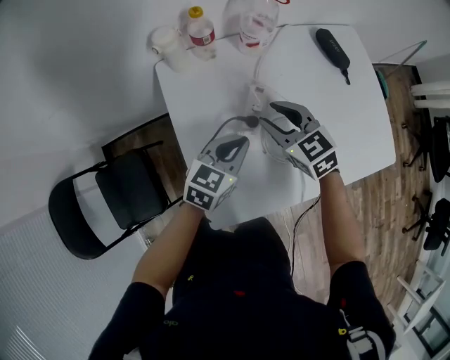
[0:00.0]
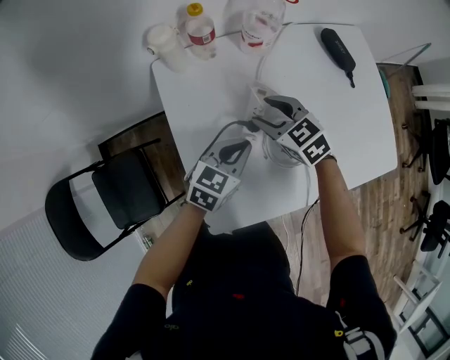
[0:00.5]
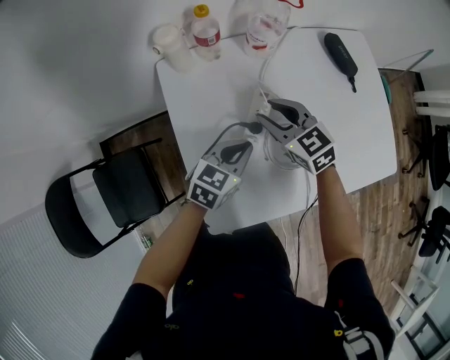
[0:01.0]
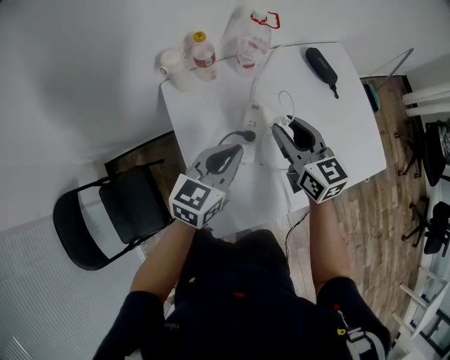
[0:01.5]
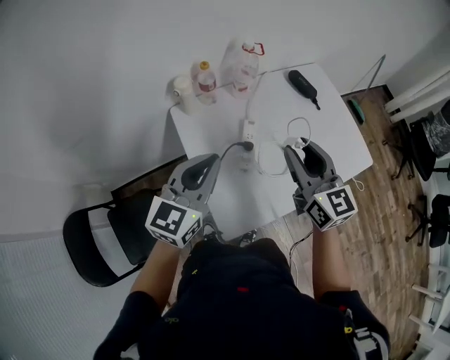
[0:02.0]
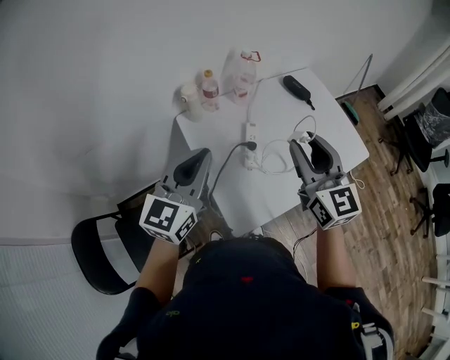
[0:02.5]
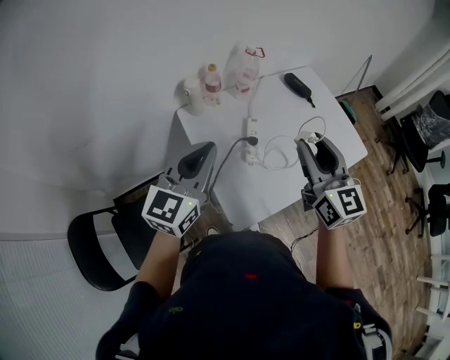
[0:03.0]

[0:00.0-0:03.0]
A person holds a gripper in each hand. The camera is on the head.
0:00.0 to 0:01.5: Both grippers travel together upward, some 10 cm. The right gripper turns by roughly 30 degrees.
0:01.5 to 0:03.0: The right gripper shifts roughly 25 cm upward and backward, and changes its angle by roughly 20 degrees, while the left gripper heads upward, to the left and backward, covering some 25 cm, and turns by roughly 20 degrees.

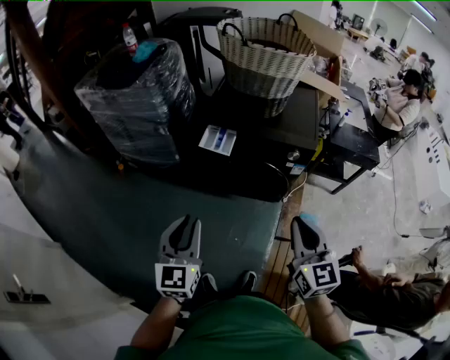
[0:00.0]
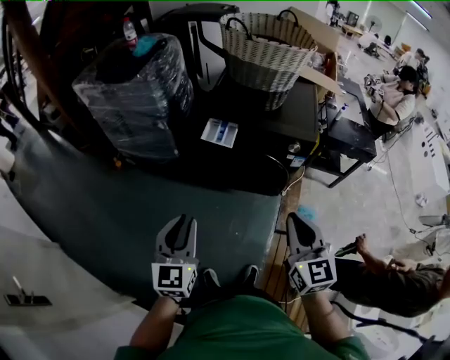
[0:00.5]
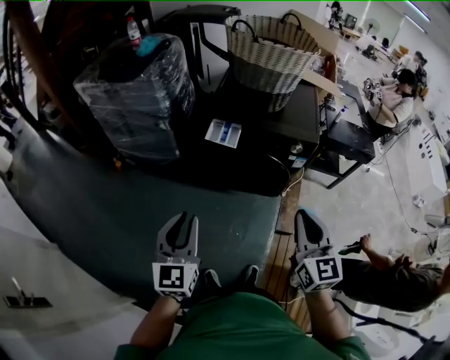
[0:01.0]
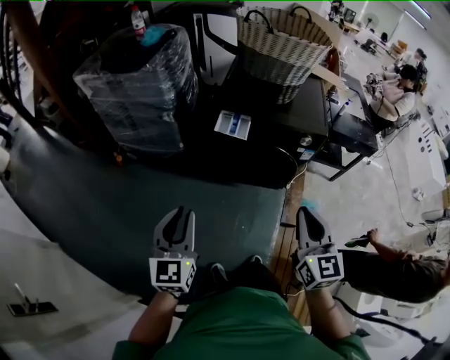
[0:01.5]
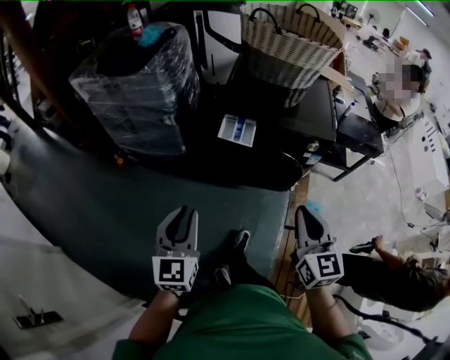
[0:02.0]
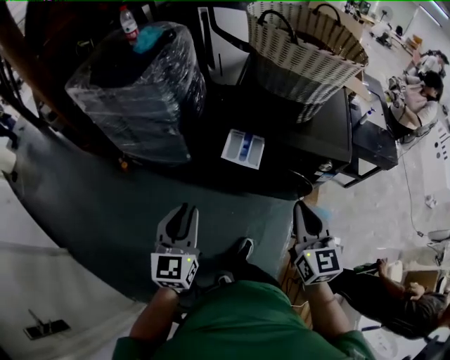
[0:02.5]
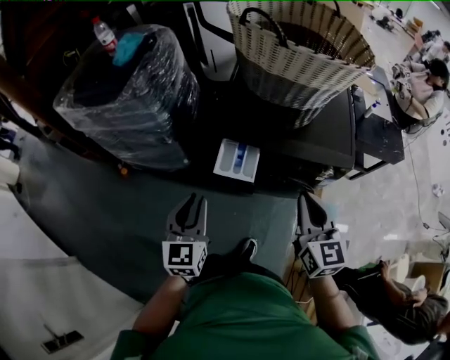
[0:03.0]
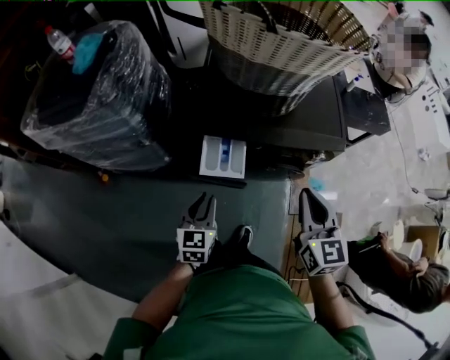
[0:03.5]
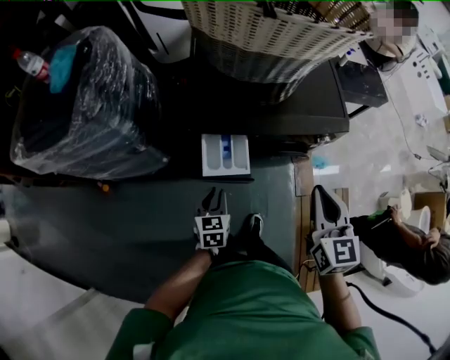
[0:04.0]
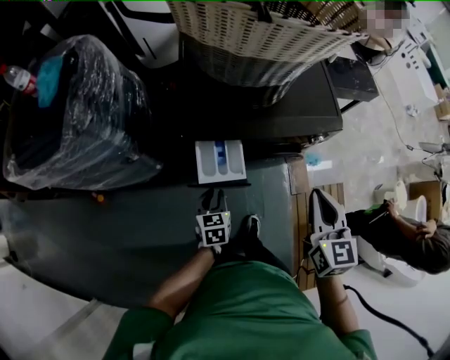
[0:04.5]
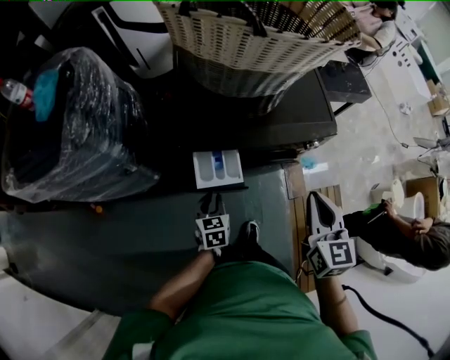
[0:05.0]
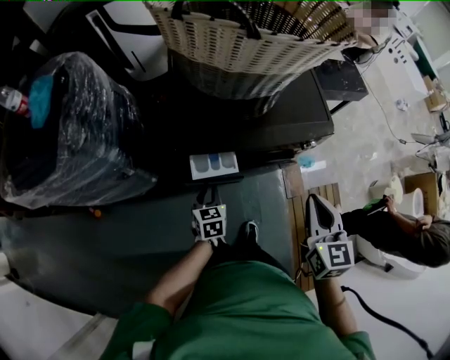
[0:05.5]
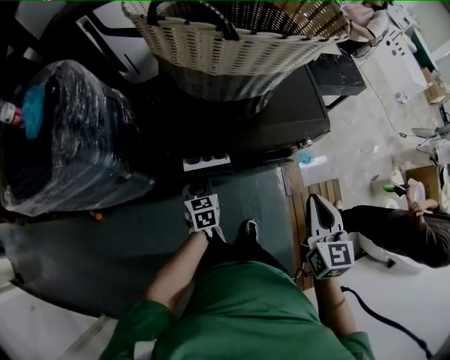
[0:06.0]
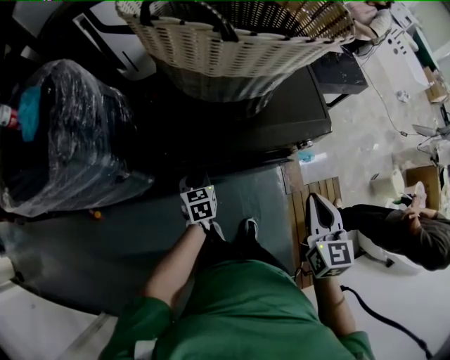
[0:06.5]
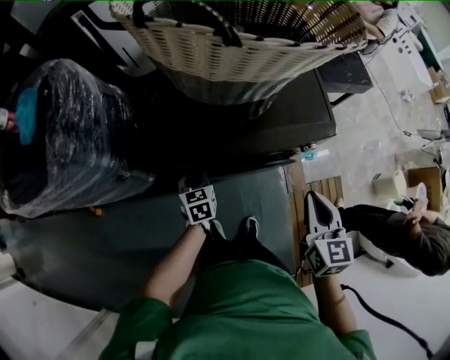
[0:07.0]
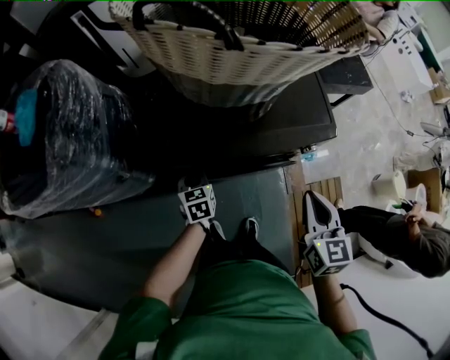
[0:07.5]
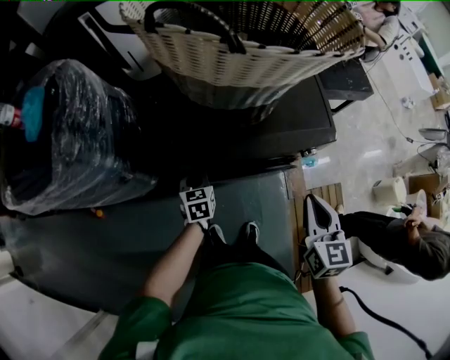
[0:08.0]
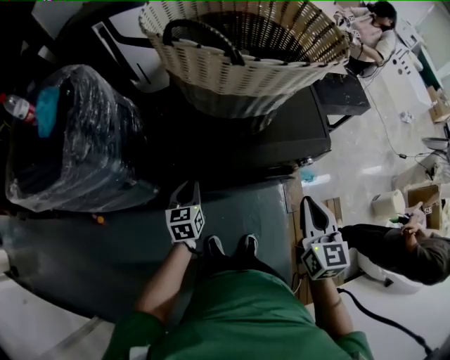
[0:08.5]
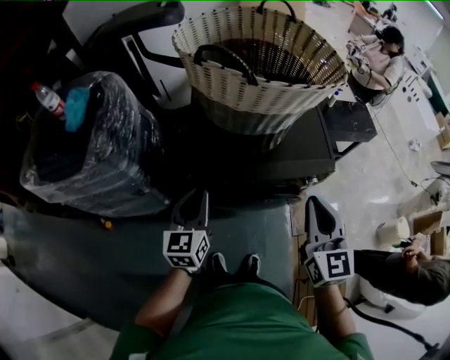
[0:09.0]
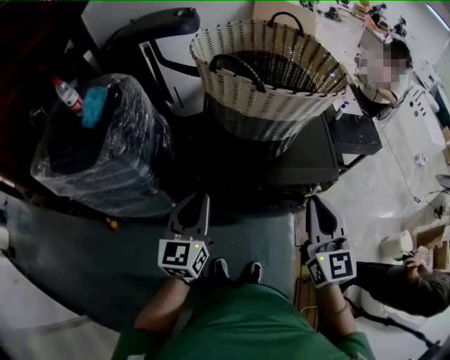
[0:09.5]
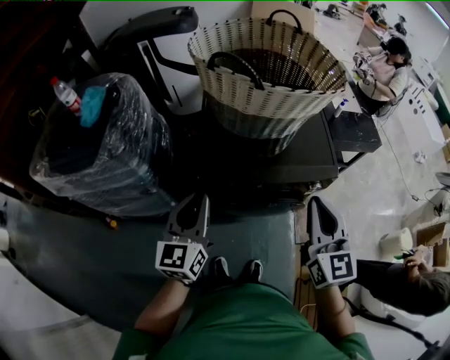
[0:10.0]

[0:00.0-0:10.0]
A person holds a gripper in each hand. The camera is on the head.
0:00.0 to 0:02.0: Both grippers travel together to the left, some 15 cm.
0:02.0 to 0:04.0: The right gripper heads forward, covering roughly 25 cm, and turns by roughly 20 degrees, while the left gripper heads forward and downward, covering some 40 cm, and angles its fingers downward, by about 30 degrees.
0:04.0 to 0:06.0: The left gripper travels forward by some 10 cm.
0:06.0 to 0:08.0: The left gripper travels forward by about 5 cm.
0:08.0 to 0:10.0: The right gripper shifts about 15 cm upward, and changes its angle by roughly 30 degrees; the left gripper shifts approximately 30 cm upward, and points its fingers roughly 40 degrees further upward.

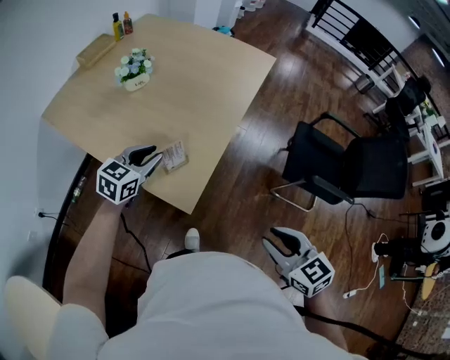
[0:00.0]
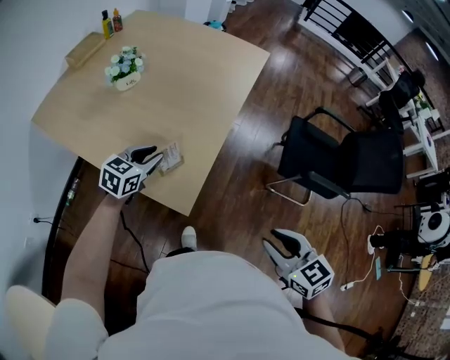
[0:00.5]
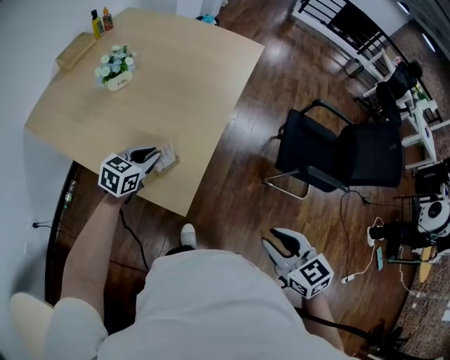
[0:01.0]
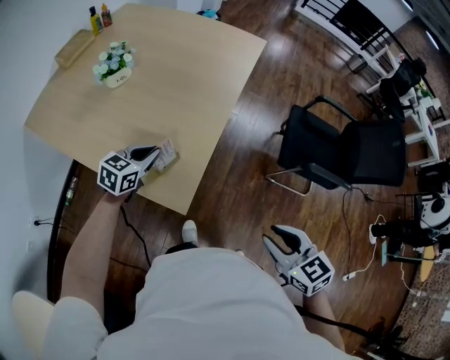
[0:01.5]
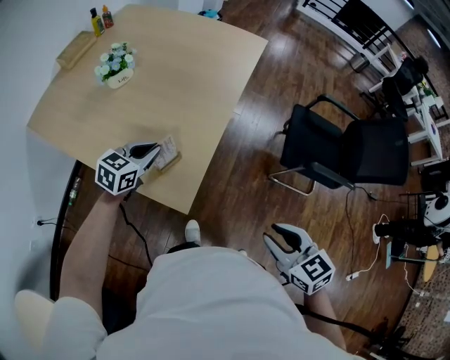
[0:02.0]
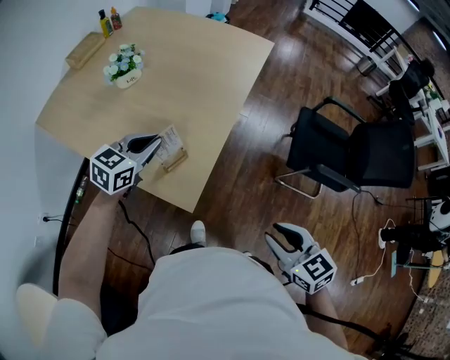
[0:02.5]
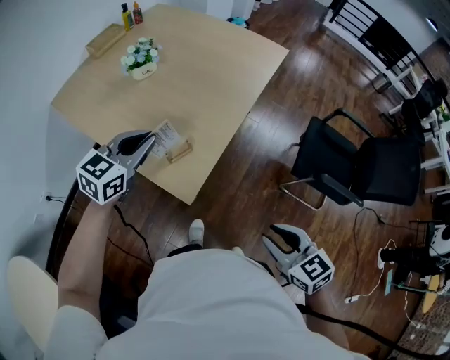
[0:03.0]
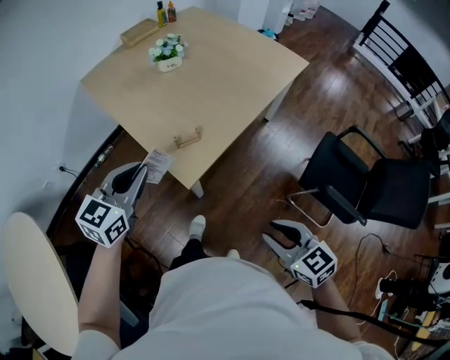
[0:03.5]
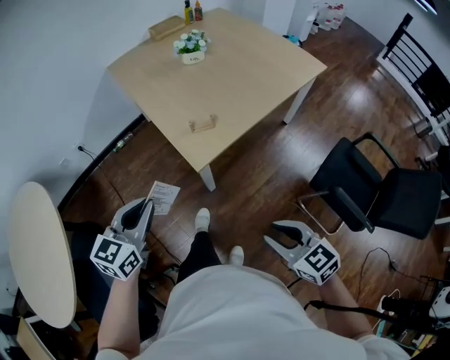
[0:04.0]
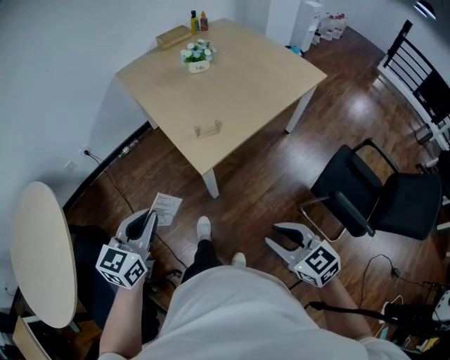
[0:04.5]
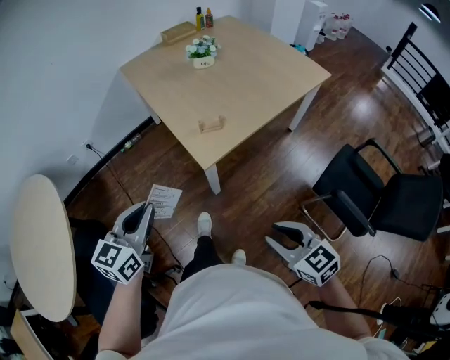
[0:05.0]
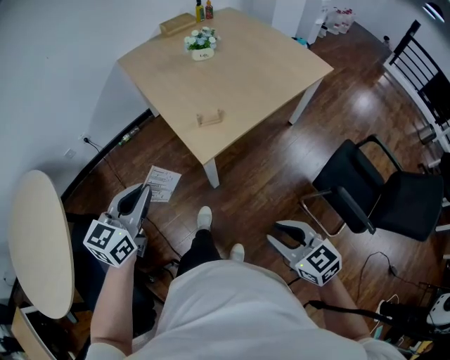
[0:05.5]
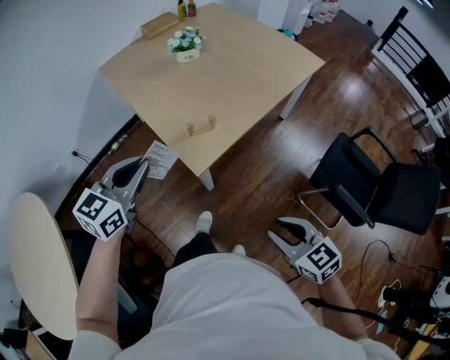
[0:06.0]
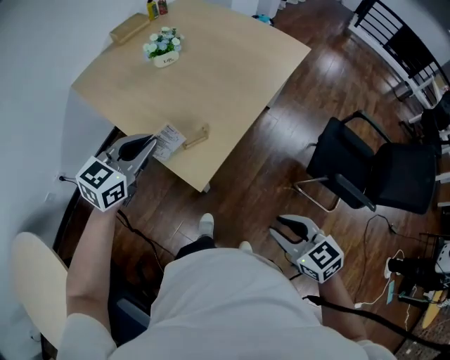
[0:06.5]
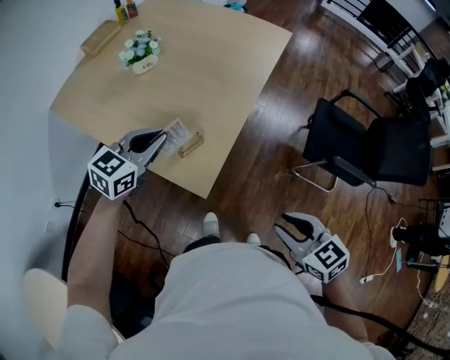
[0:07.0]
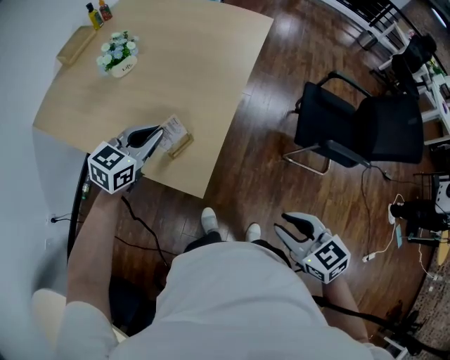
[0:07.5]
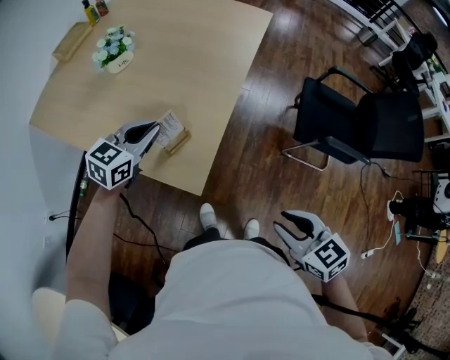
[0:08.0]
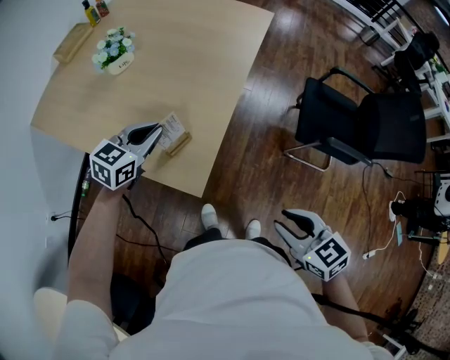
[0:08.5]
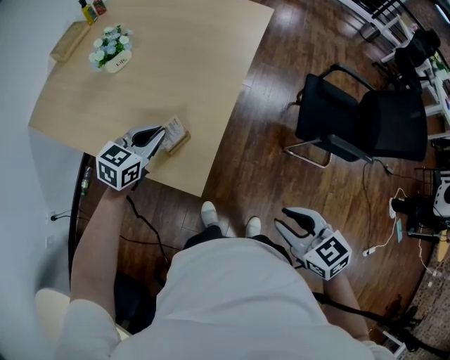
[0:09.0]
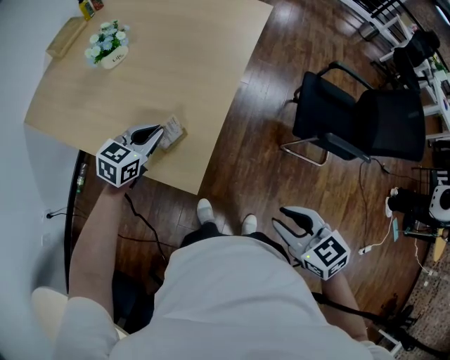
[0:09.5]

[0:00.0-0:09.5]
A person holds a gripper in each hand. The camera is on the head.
0:00.0 to 0:02.0: The left gripper changes place by approximately 5 cm, and closes.
0:02.0 to 0:04.0: The left gripper changes place by roughly 40 cm, and swivels approximately 50 degrees. The right gripper ends up some 10 cm from where it was, and rotates about 40 degrees.
0:04.0 to 0:05.5: The grippers stay close to where they were, moving slightly.
0:05.5 to 0:07.5: The right gripper ends up about 15 cm from where it was, and changes its angle by roughly 40 degrees; the left gripper shifts by some 40 cm, and rotates about 50 degrees.
0:07.5 to 0:09.5: The left gripper goes some 5 cm downward.

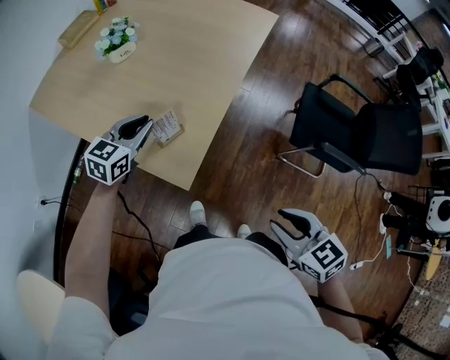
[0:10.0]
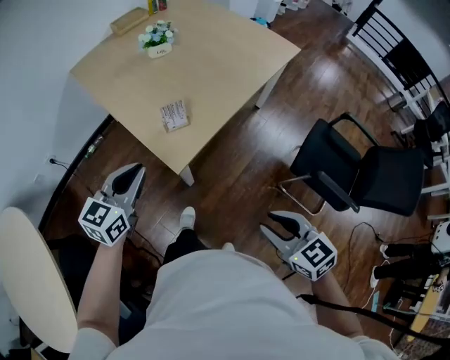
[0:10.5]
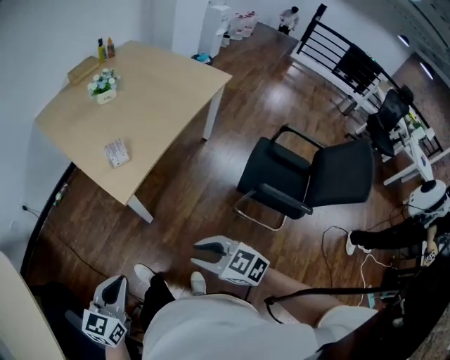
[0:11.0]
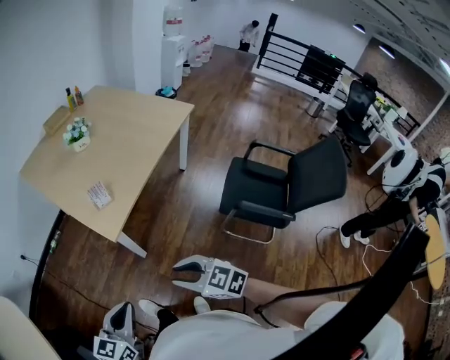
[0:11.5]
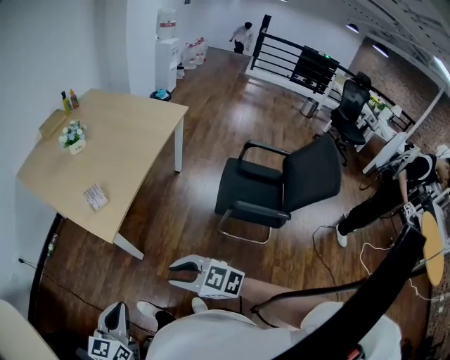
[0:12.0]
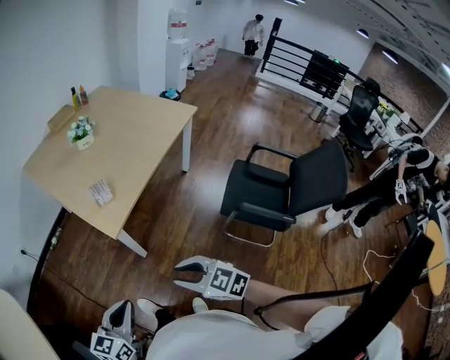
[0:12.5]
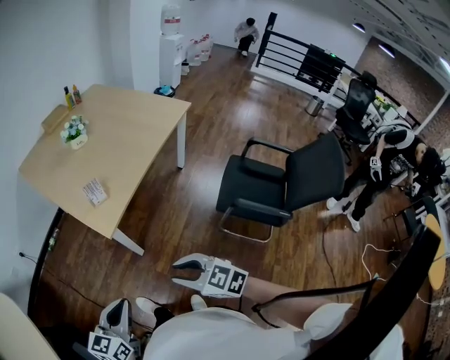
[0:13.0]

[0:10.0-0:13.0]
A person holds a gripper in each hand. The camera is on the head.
0:10.0 to 0:11.5: The left gripper ends up roughly 50 cm from where it was, and turns by roughly 30 degrees; the right gripper changes place by some 10 cm, and rotates approximately 40 degrees.
0:11.5 to 0:13.0: The grippers stay close to where they were, moving slightly.
